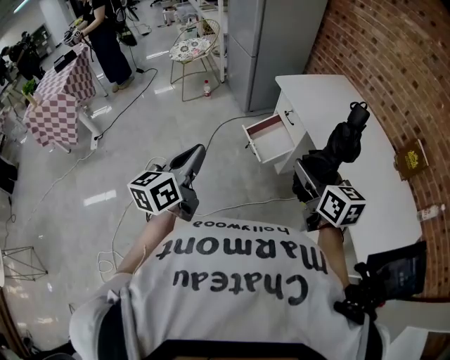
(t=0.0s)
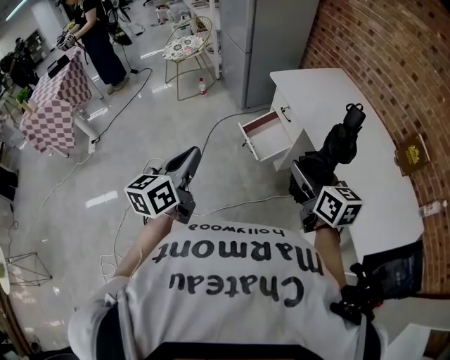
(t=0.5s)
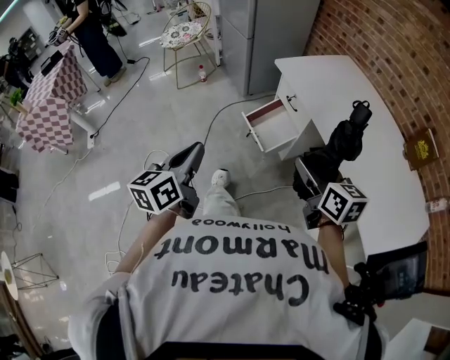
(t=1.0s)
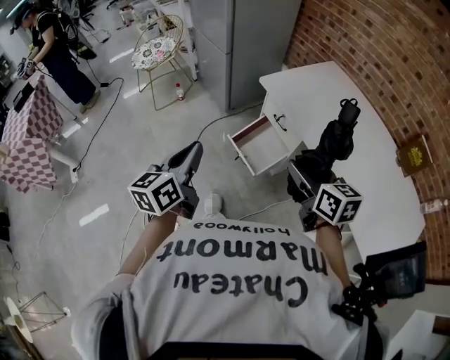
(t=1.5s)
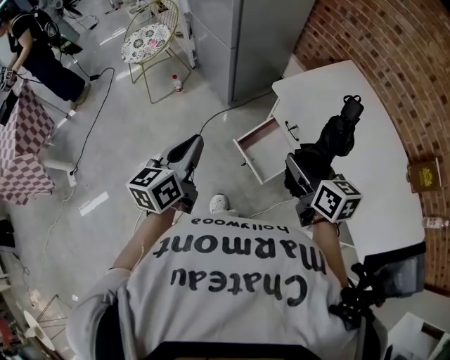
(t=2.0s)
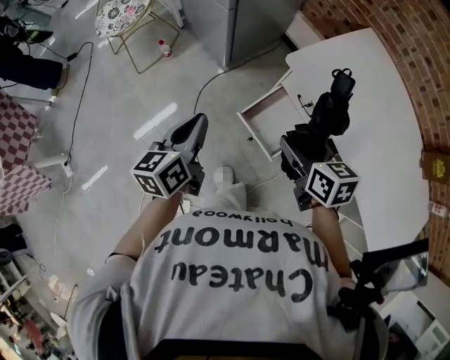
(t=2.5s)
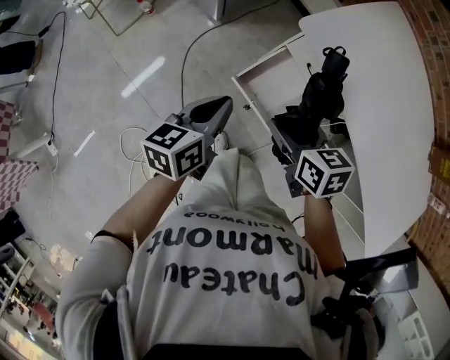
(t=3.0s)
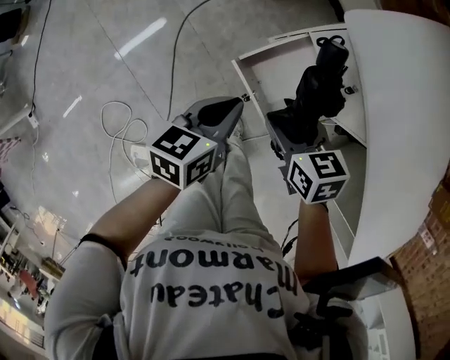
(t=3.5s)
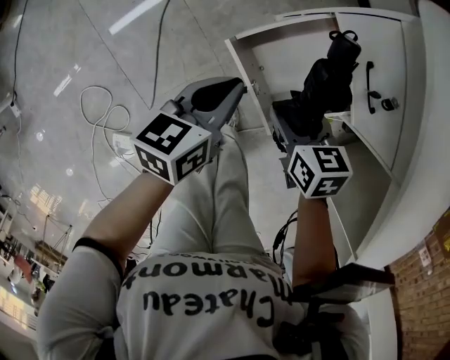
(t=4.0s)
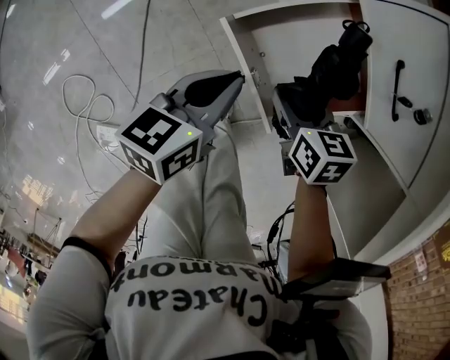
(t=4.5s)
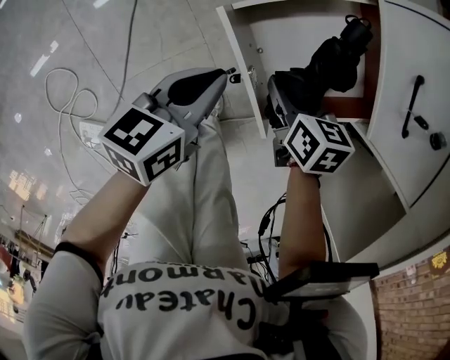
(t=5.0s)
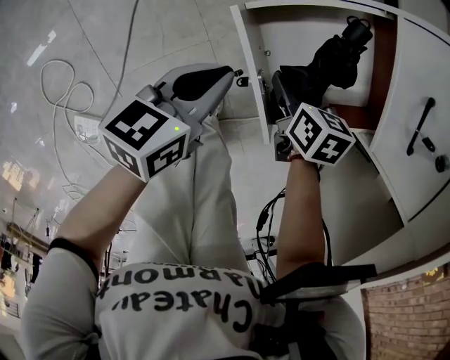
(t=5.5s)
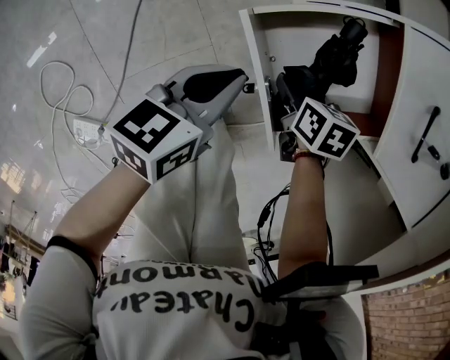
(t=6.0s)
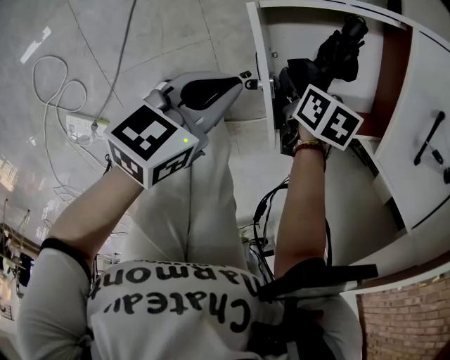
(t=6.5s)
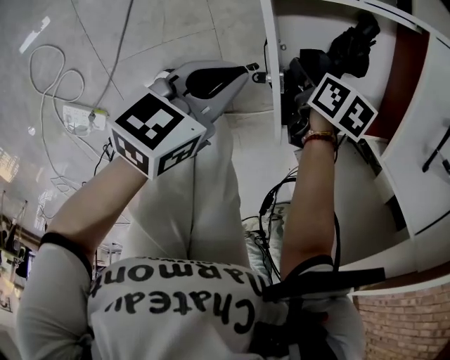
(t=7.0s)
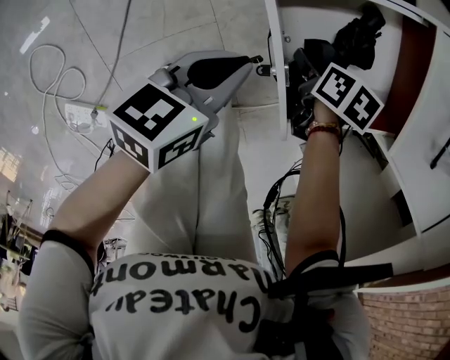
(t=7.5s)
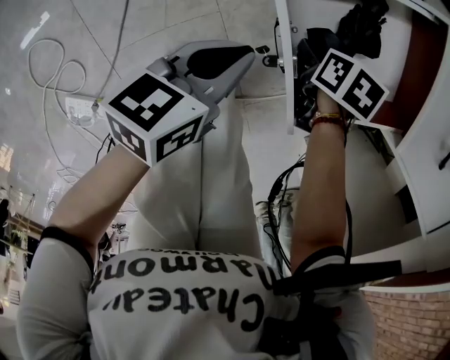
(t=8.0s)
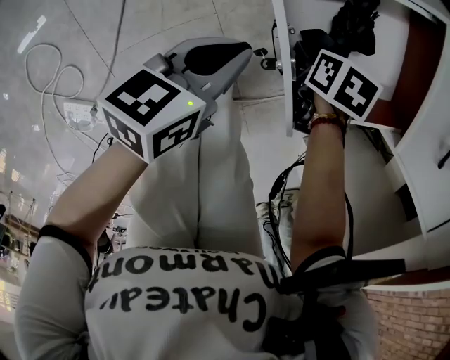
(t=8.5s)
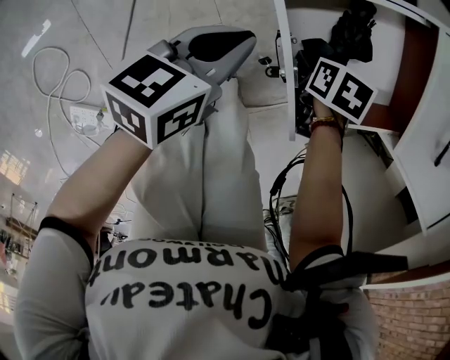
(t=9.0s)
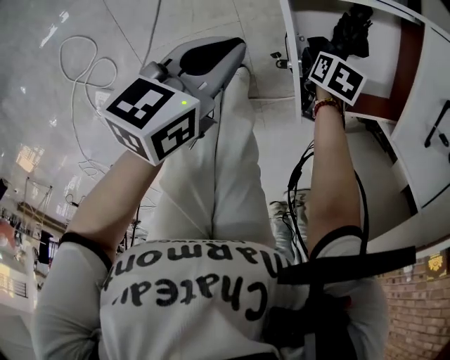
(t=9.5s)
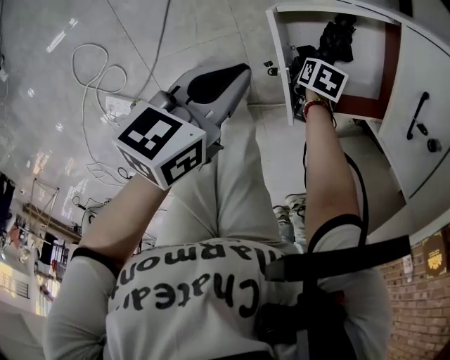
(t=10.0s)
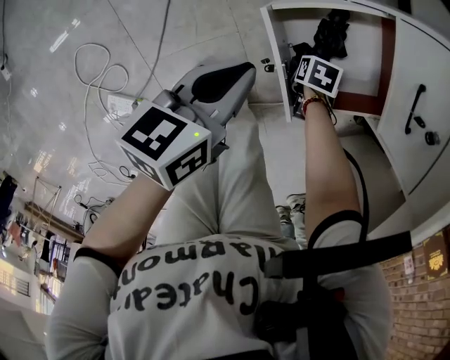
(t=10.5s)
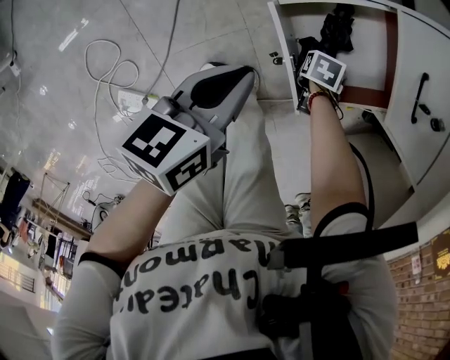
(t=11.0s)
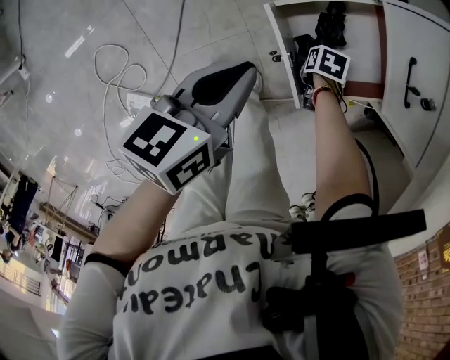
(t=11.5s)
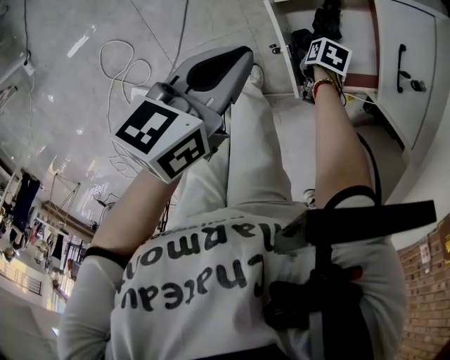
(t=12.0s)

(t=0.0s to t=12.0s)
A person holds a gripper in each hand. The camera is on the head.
t=0.0s - t=2.0s: The two grippers go some 35 cm forward.
t=2.0s - t=4.0s: Both grippers move downward, approximately 40 cm. The left gripper rotates approximately 30 degrees. The right gripper tilts its fingers some 30 degrees downward.
t=4.0s - t=6.0s: The two grippers go some 15 cm downward.
t=6.0s - t=8.0s: There are only small adjustments of the grippers.
t=8.0s - t=10.0s: The left gripper is displaced upward by roughly 15 cm.
t=10.0s - t=12.0s: The right gripper heads upward, covering about 5 cm. The left gripper travels upward by about 10 cm.

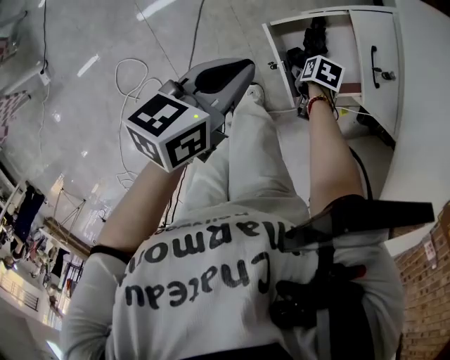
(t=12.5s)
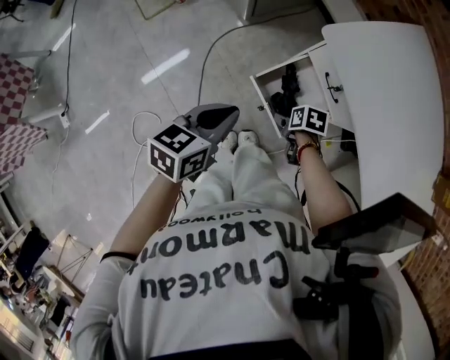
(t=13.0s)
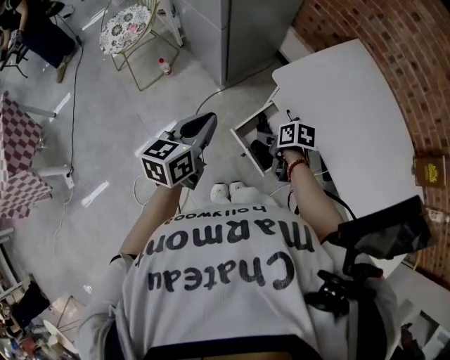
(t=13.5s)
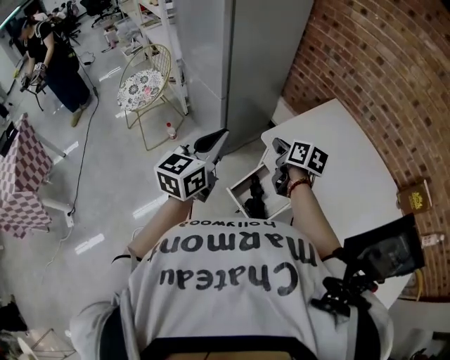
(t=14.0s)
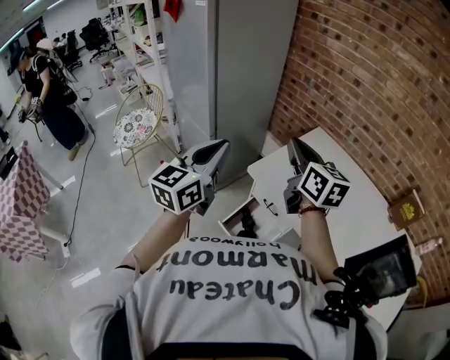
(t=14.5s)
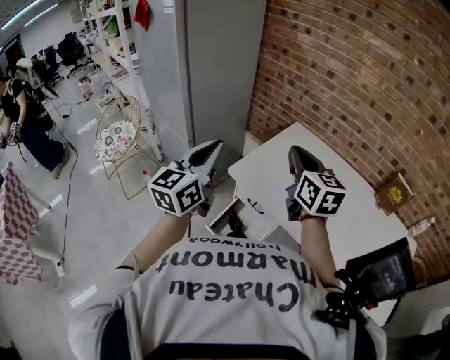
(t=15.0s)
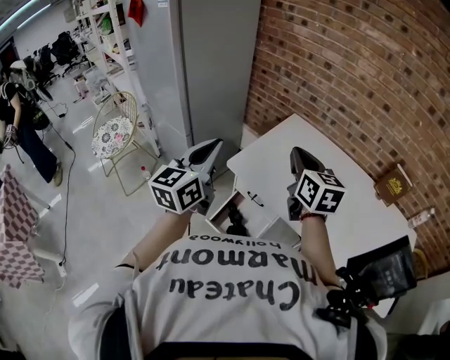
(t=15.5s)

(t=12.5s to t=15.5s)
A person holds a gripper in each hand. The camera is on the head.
t=12.5s - t=14.0s: Both grippers travel together upward, about 40 cm. The left gripper changes its angle by some 40 degrees; the right gripper tips its fingers upward by approximately 60 degrees, and closes its fingers.
t=14.0s - t=15.5s: The left gripper heads to the right and upward, covering about 10 cm, while the right gripper moves upward and to the right, roughly 25 cm, and changes its angle by approximately 40 degrees.

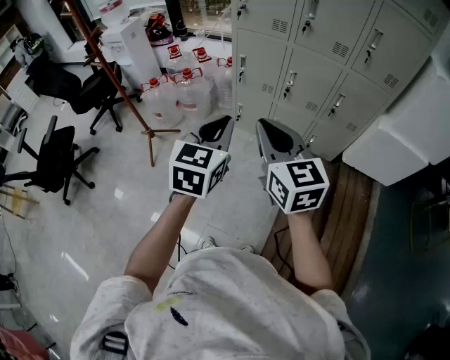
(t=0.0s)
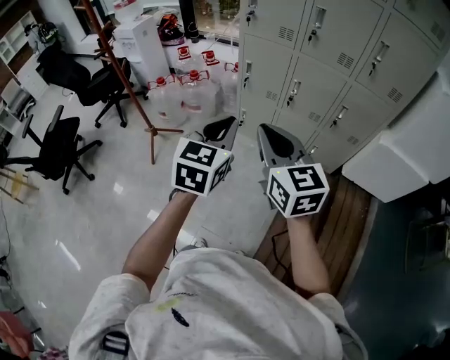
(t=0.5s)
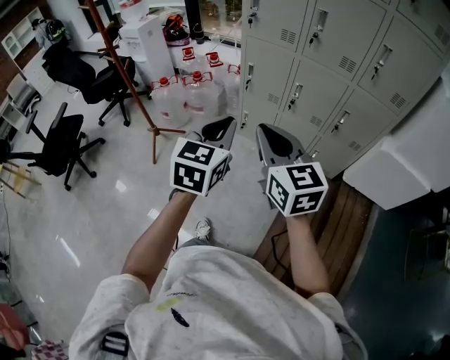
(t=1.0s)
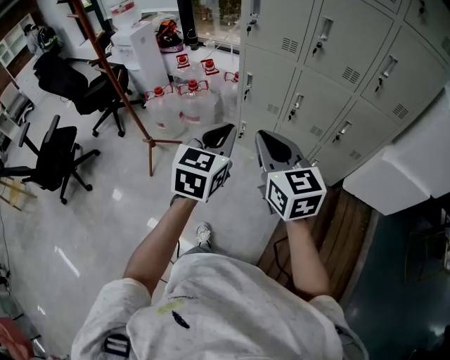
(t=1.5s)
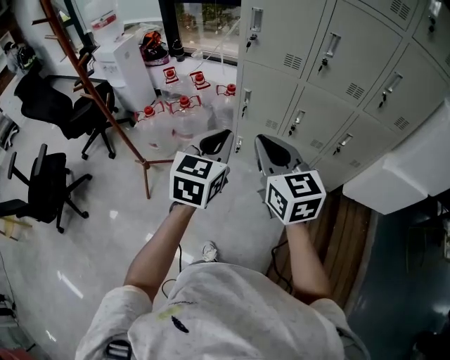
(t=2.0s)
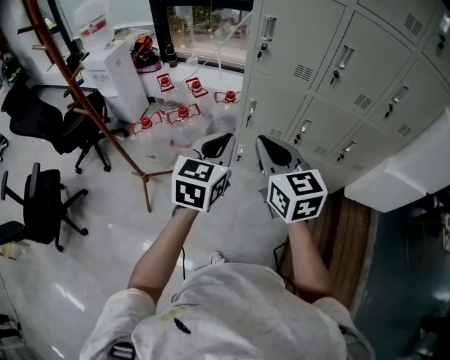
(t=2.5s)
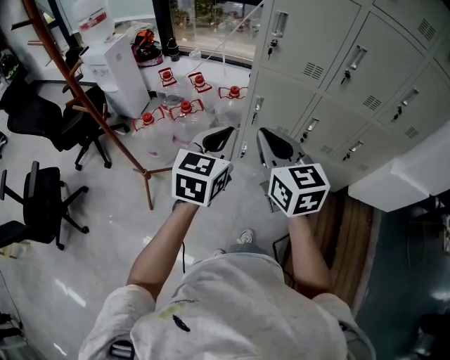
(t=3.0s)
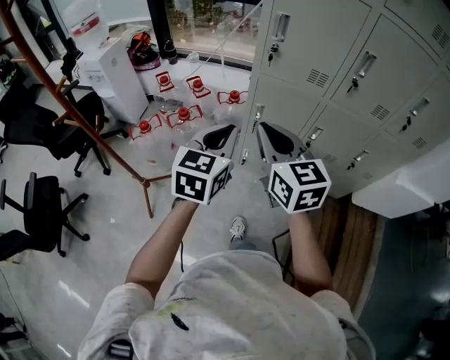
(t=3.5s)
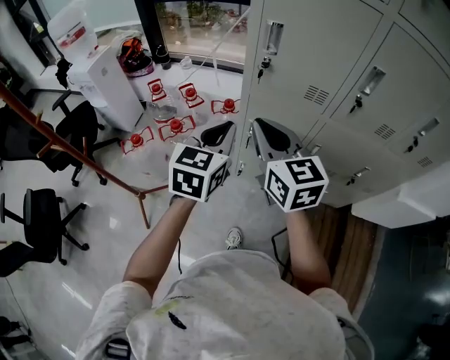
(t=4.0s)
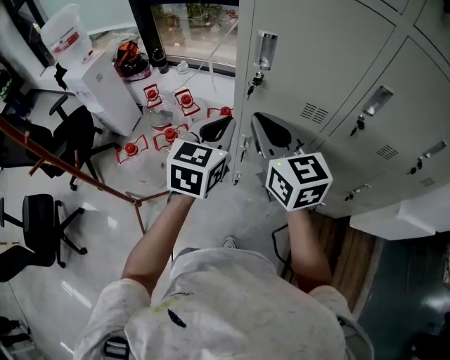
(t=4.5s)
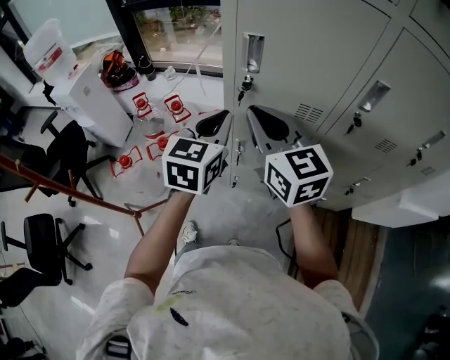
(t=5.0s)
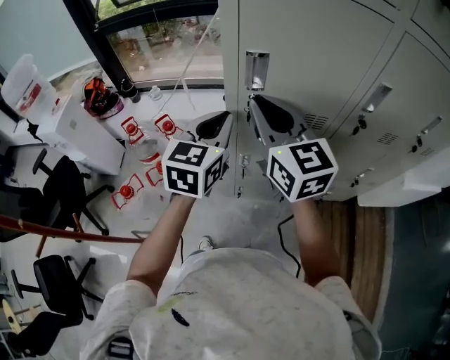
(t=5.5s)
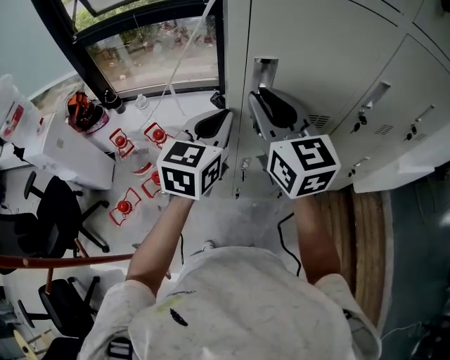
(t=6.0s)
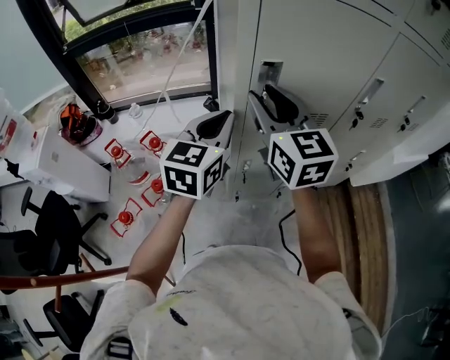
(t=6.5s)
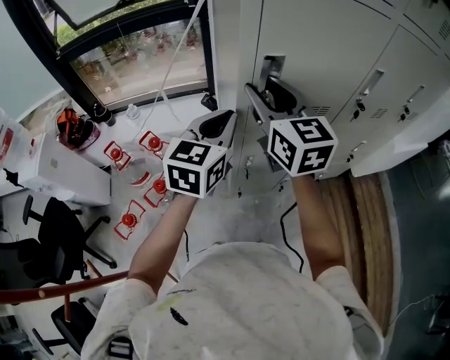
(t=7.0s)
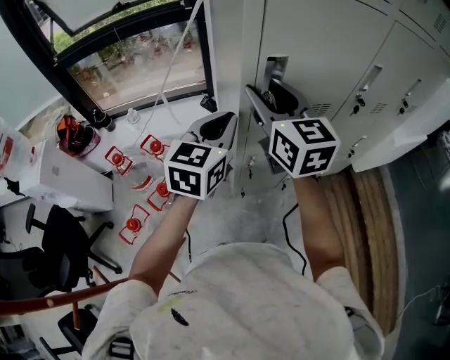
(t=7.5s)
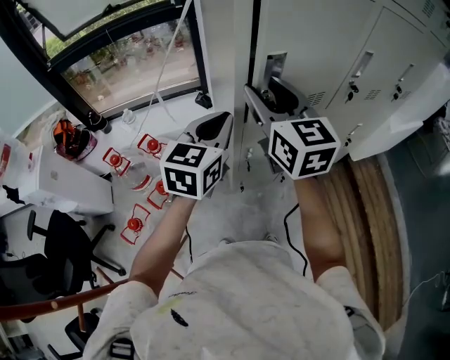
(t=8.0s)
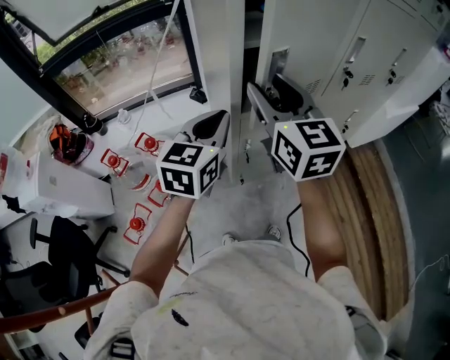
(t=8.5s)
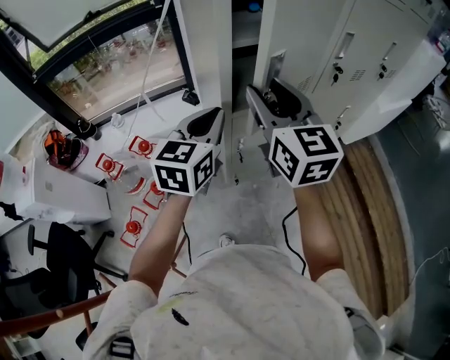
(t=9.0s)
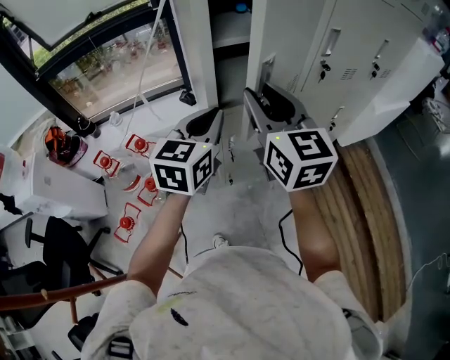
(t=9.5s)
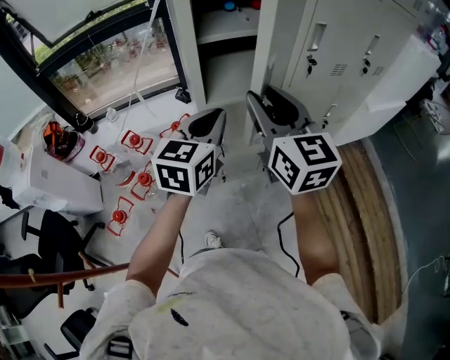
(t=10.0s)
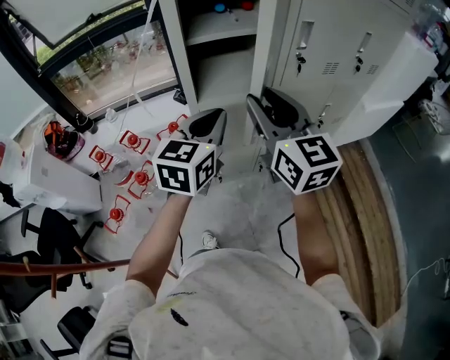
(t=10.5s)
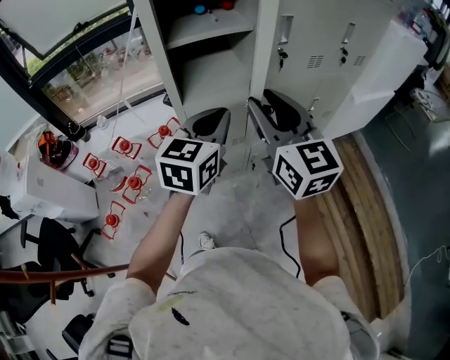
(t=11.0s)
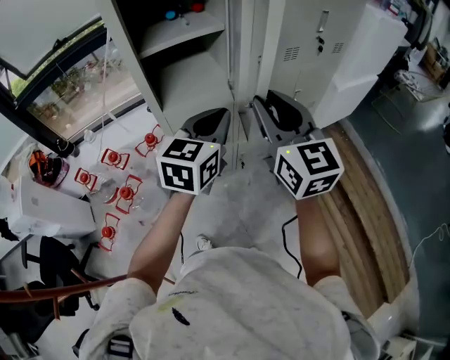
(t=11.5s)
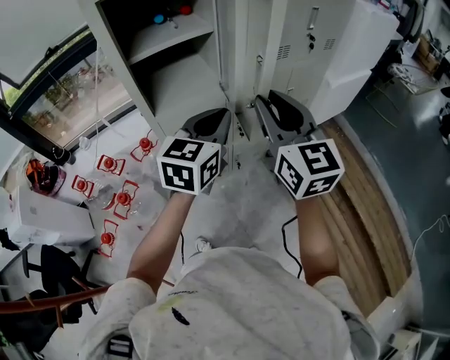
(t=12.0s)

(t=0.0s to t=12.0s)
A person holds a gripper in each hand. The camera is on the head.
t=0.0s - t=2.0s: The grippers both shift forward by roughly 20 cm.
t=2.0s - t=4.0s: The grippers both shift forward by some 30 cm.
t=4.0s - t=6.0s: Both grippers move forward, about 20 cm. The right gripper turns by roughly 20 degrees.
t=6.0s - t=8.0s: The right gripper opens up.
t=8.0s - t=10.0s: The two grippers go some 15 cm to the right and backward.
t=10.0s - t=12.0s: Both grippers move to the right, roughly 15 cm.
